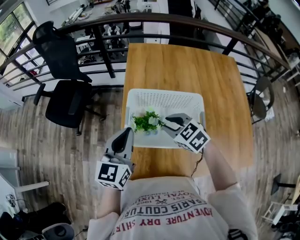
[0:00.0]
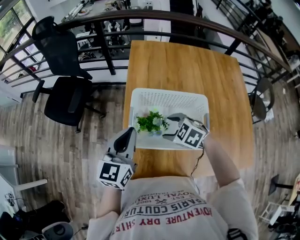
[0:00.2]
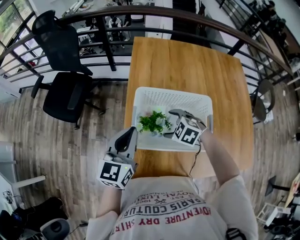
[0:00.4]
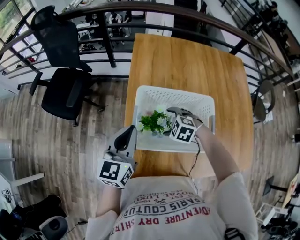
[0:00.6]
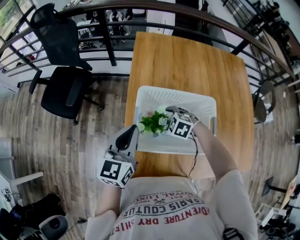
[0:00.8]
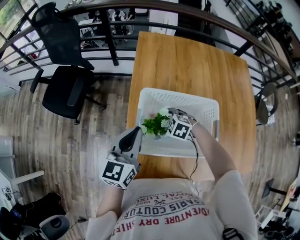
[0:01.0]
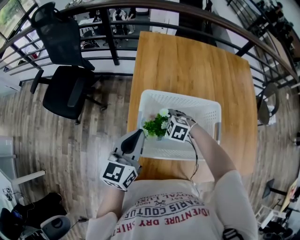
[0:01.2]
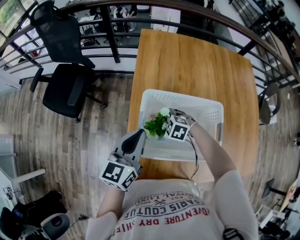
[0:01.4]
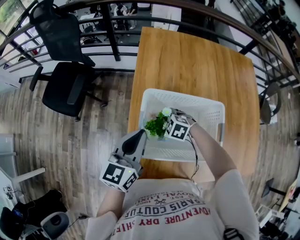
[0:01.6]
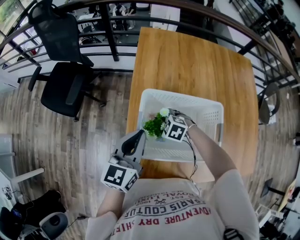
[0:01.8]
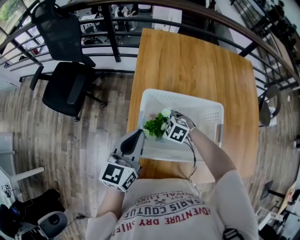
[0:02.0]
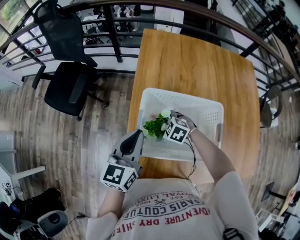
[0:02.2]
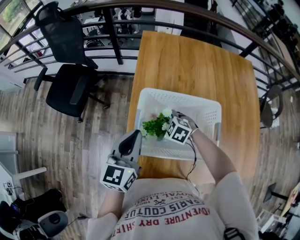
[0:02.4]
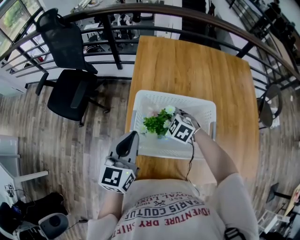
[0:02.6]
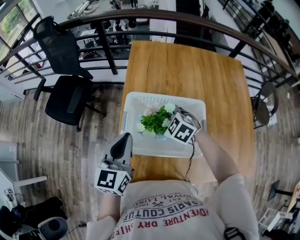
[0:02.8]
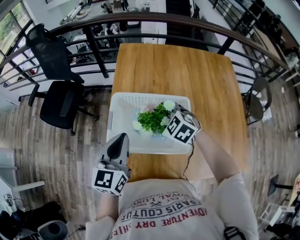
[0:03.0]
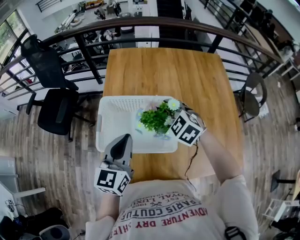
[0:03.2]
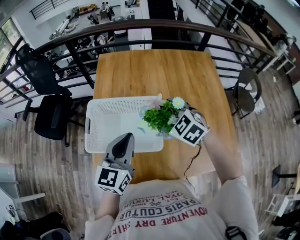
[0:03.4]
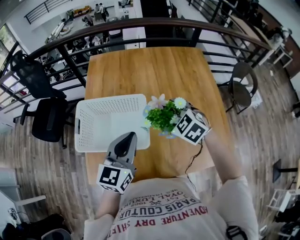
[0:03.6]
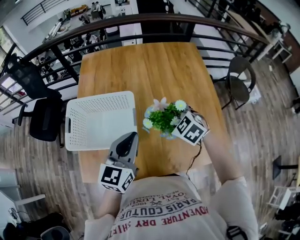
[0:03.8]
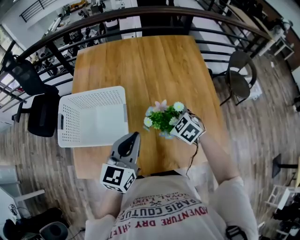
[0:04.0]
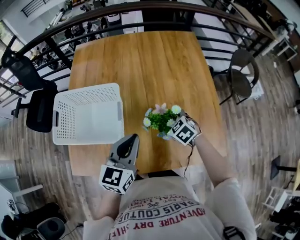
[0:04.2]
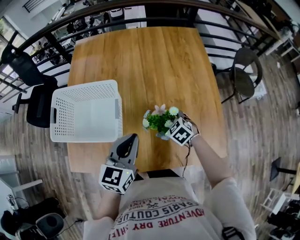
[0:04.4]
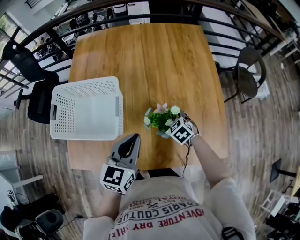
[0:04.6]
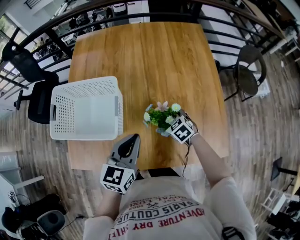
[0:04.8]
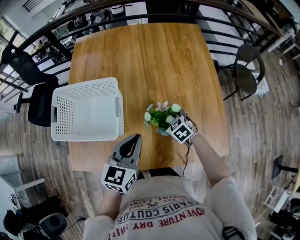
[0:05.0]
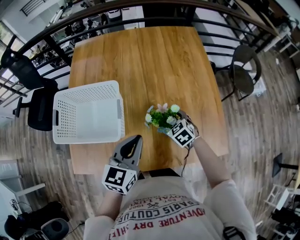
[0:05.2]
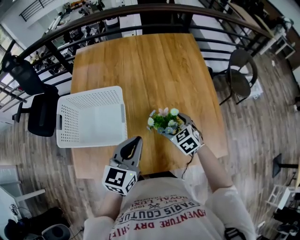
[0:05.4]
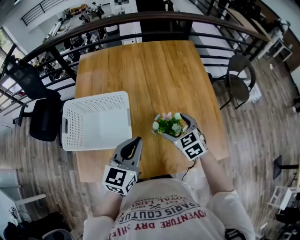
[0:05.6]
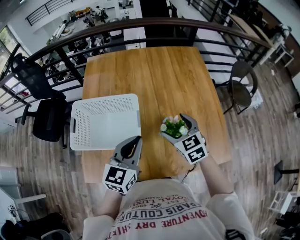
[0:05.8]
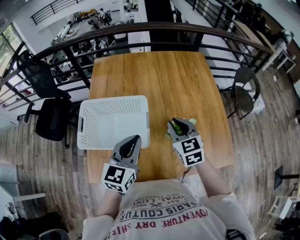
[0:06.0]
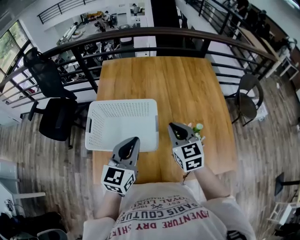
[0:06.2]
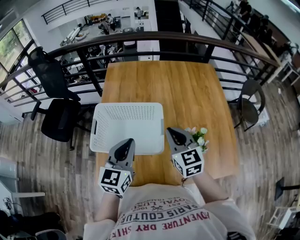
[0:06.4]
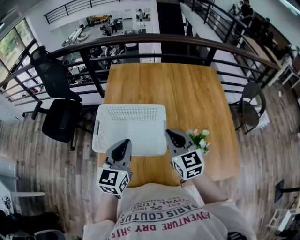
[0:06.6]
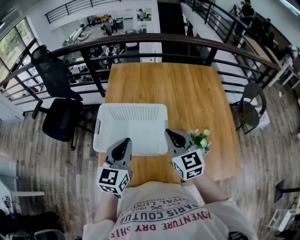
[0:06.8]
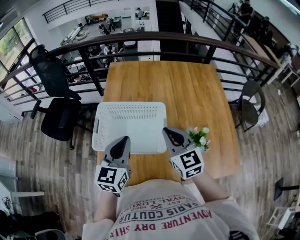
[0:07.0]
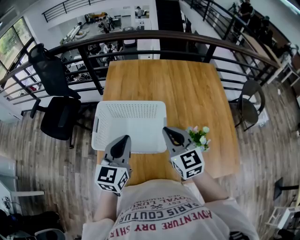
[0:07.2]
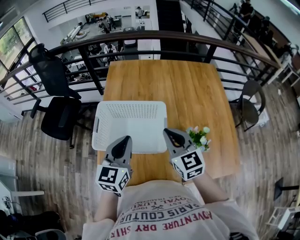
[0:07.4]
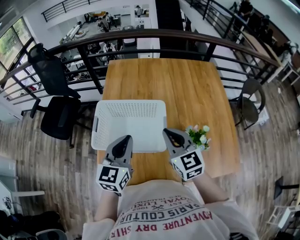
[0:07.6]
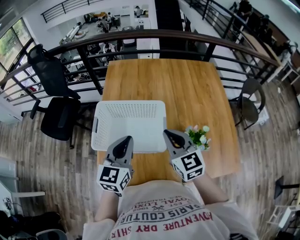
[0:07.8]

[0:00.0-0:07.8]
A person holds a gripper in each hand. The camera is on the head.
0:00.0 to 0:01.6: The left gripper shifts approximately 5 cm downward. The right gripper is displaced downward by some 20 cm, swivels about 30 degrees, and opens up.
0:01.6 to 0:03.2: The left gripper travels to the right, backward and upward by some 15 cm. Meanwhile the right gripper goes about 25 cm upward and to the right, and turns by roughly 30 degrees.
0:03.2 to 0:04.6: The right gripper goes some 35 cm to the right and downward, and rotates some 20 degrees. The left gripper moves to the right, roughly 25 cm.
0:04.6 to 0:06.2: The left gripper goes about 20 cm to the left and upward. Meanwhile the right gripper moves upward and to the left, approximately 30 cm, points its fingers roughly 40 degrees further upward, and closes up.
0:06.2 to 0:07.8: The grippers both shift to the left by approximately 5 cm.

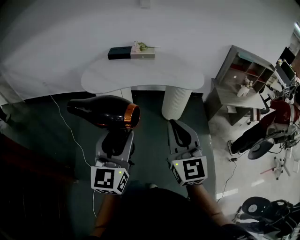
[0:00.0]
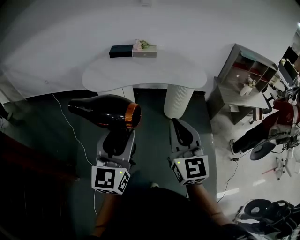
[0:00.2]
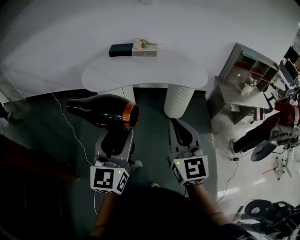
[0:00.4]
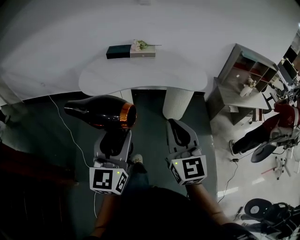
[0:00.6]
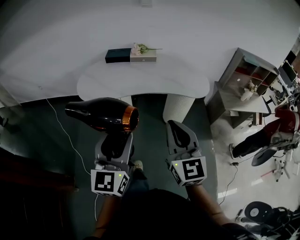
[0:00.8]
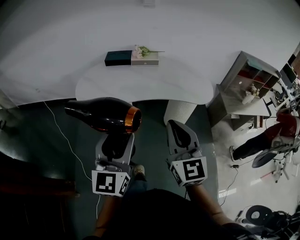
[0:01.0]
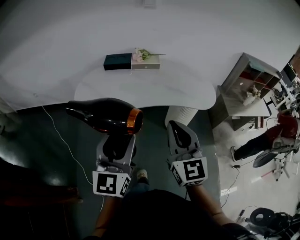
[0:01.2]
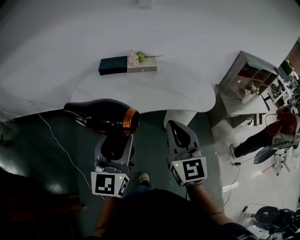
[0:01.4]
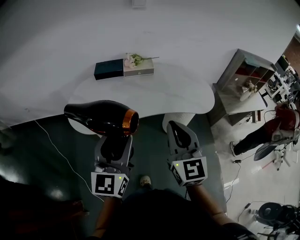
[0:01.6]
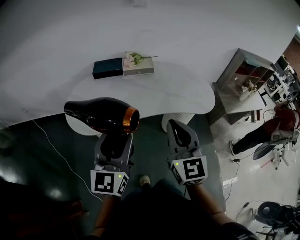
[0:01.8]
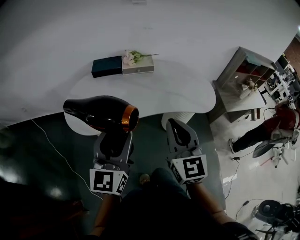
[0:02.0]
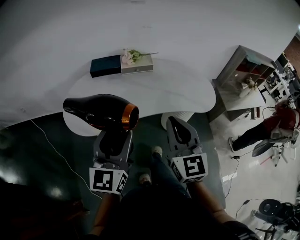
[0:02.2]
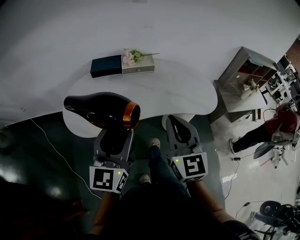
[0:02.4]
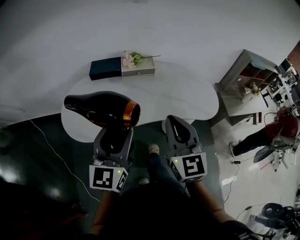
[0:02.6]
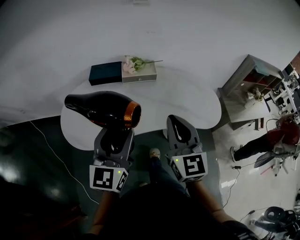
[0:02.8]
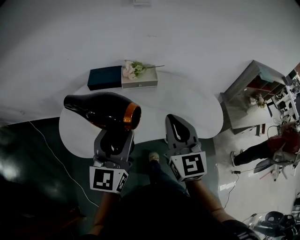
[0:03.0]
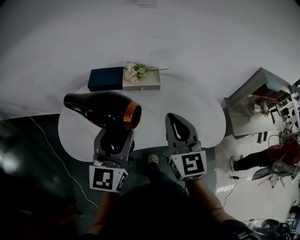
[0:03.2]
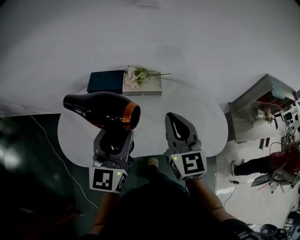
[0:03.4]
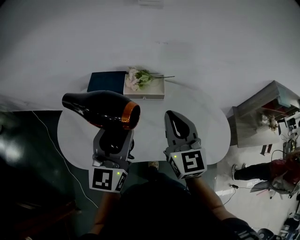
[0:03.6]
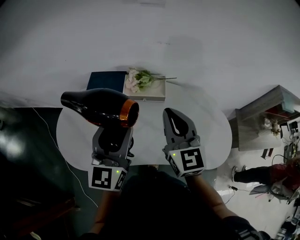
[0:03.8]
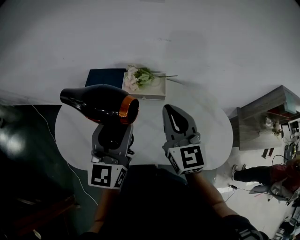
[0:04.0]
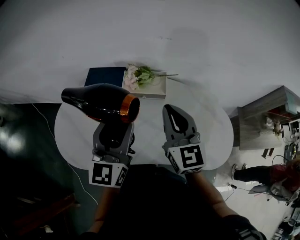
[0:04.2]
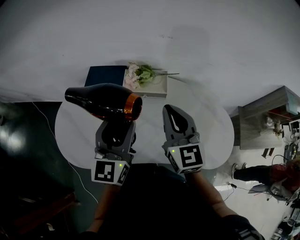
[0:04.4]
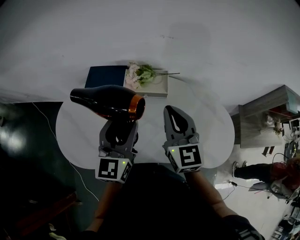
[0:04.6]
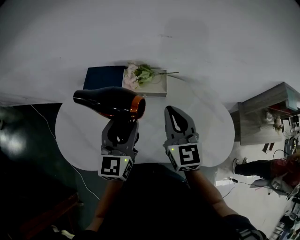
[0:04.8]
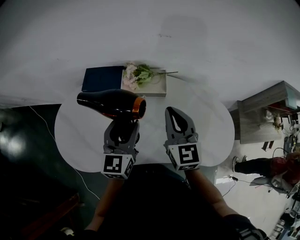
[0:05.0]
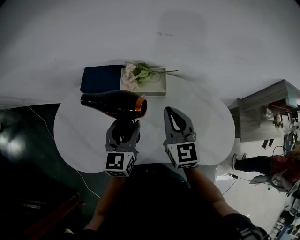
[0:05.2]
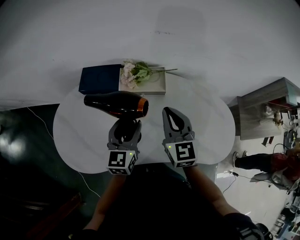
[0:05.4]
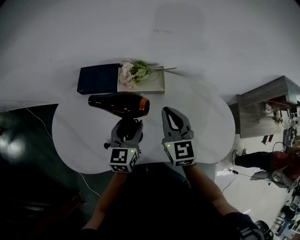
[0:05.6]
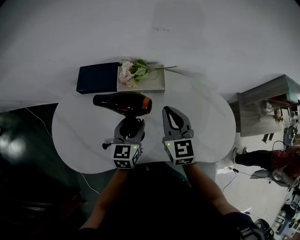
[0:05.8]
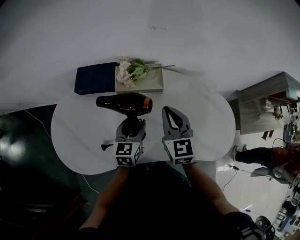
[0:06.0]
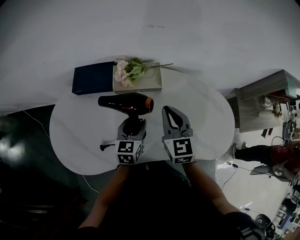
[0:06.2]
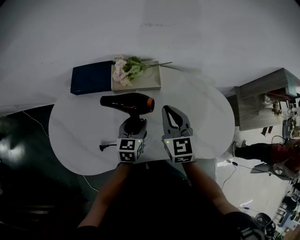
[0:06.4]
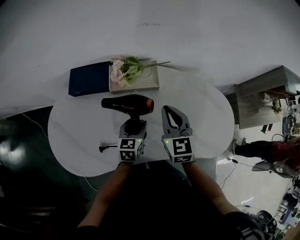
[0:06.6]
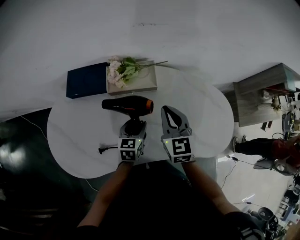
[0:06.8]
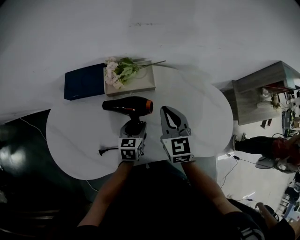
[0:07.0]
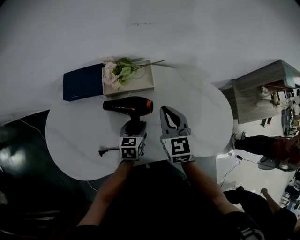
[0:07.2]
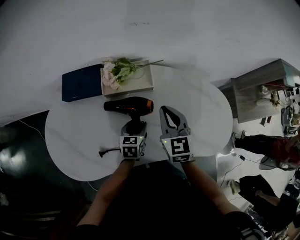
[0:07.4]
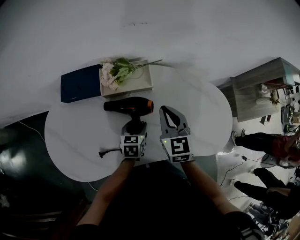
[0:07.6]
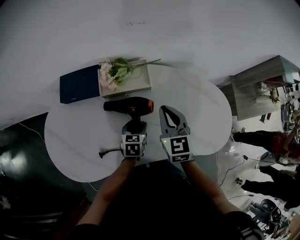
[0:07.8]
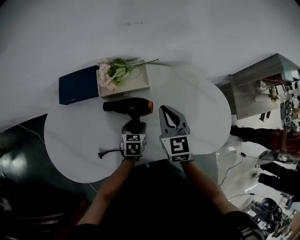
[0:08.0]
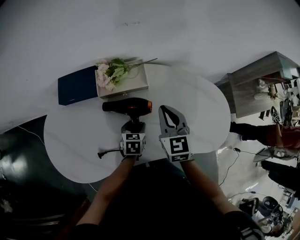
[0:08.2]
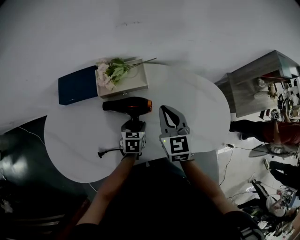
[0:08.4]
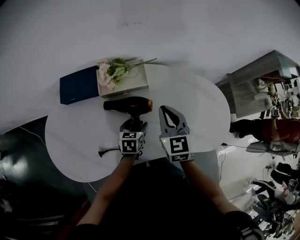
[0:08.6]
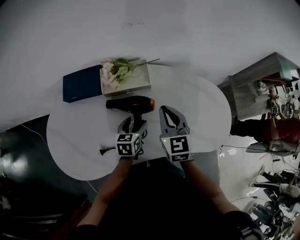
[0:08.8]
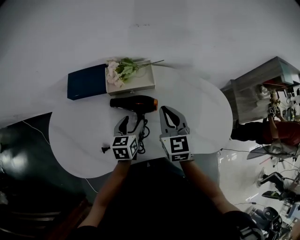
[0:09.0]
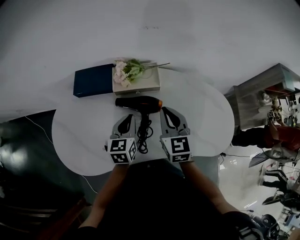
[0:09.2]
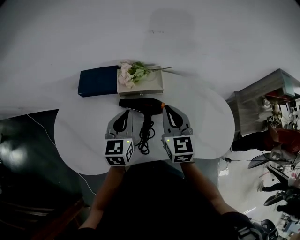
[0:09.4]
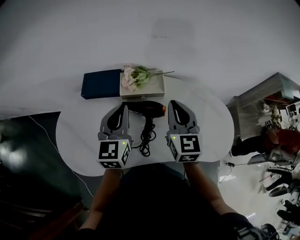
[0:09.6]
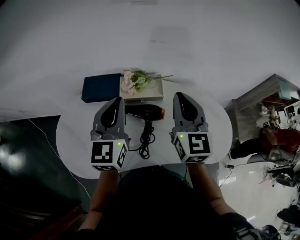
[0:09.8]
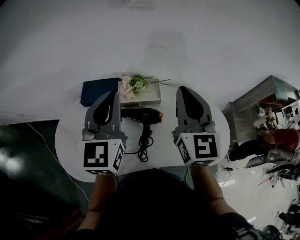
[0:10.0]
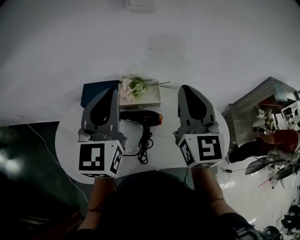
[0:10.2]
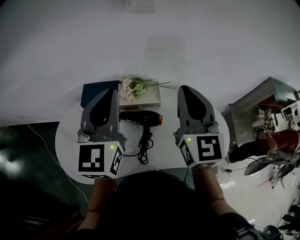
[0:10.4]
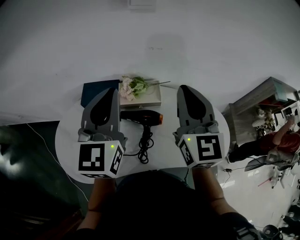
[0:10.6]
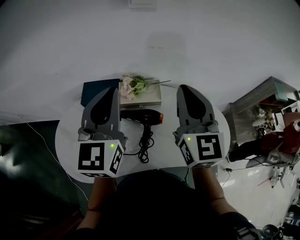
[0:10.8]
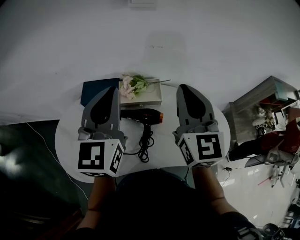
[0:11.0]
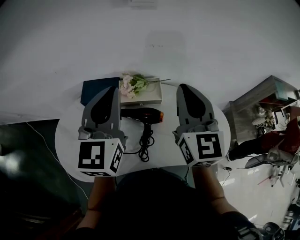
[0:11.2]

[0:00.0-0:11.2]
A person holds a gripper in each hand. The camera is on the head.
0:00.0 to 0:01.6: Both grippers travel together forward, roughly 35 cm.
0:01.6 to 0:03.2: The two grippers go roughly 25 cm forward.
0:03.2 to 0:04.8: The left gripper travels forward and downward by some 20 cm. Meanwhile the right gripper is displaced forward by about 15 cm.
0:04.8 to 0:06.4: The left gripper goes about 20 cm downward, and turns by approximately 30 degrees. The right gripper goes approximately 10 cm downward.
0:06.4 to 0:08.0: The left gripper moves downward, approximately 10 cm, and rotates roughly 20 degrees.
0:08.0 to 0:09.6: The left gripper shifts approximately 30 cm upward, points its fingers about 40 degrees further upward, and closes up. The right gripper goes some 10 cm upward.
0:09.6 to 0:11.2: The grippers both shift upward by roughly 15 cm.

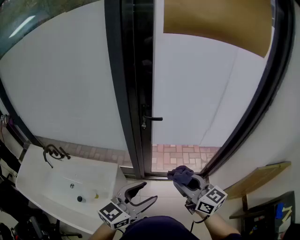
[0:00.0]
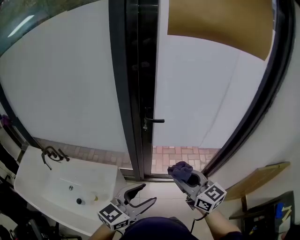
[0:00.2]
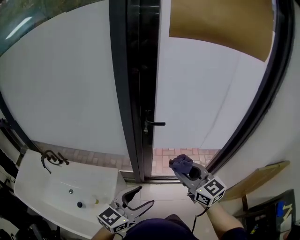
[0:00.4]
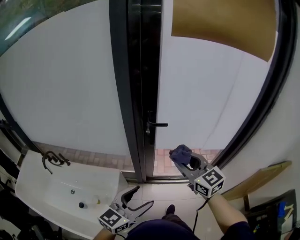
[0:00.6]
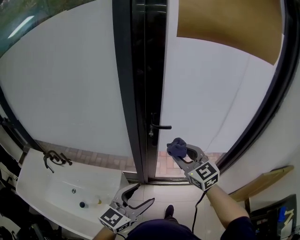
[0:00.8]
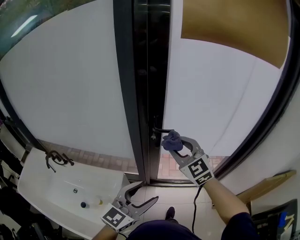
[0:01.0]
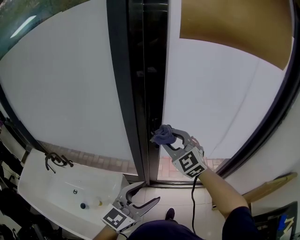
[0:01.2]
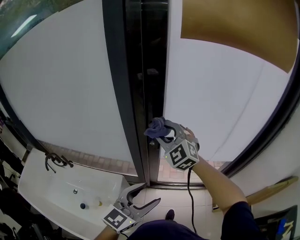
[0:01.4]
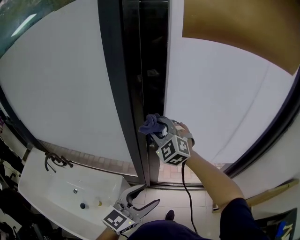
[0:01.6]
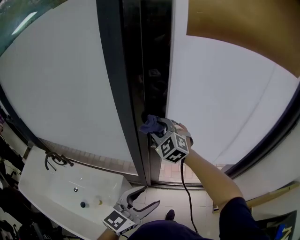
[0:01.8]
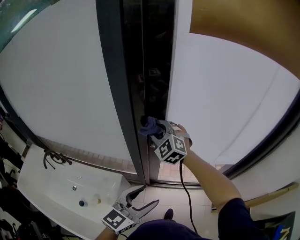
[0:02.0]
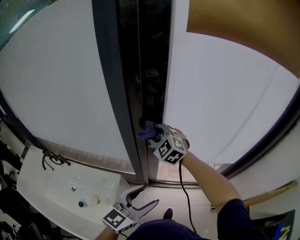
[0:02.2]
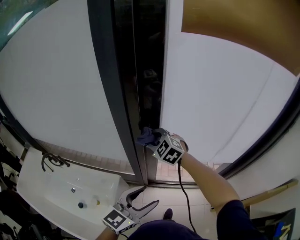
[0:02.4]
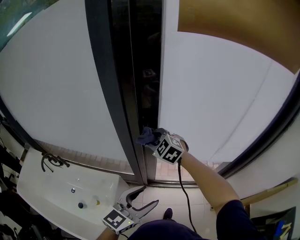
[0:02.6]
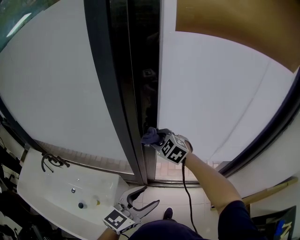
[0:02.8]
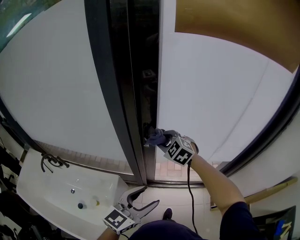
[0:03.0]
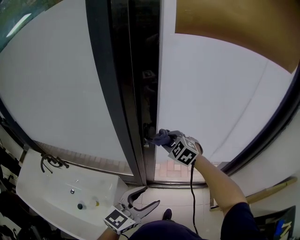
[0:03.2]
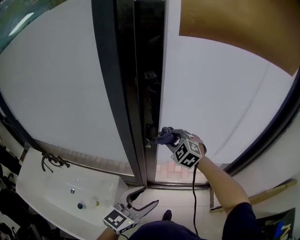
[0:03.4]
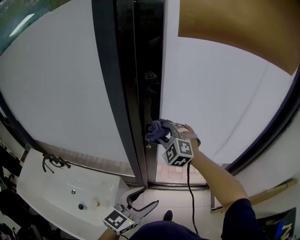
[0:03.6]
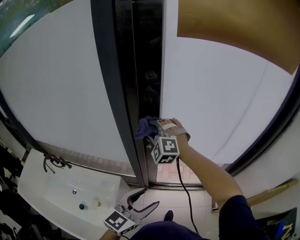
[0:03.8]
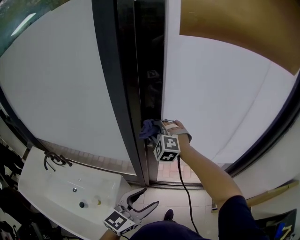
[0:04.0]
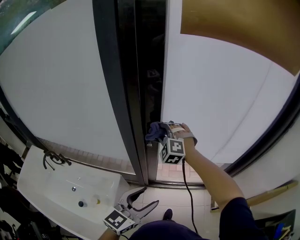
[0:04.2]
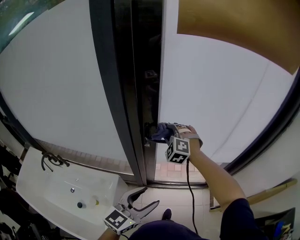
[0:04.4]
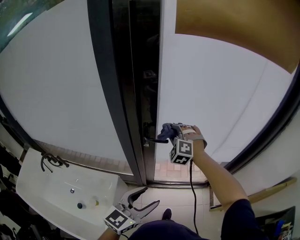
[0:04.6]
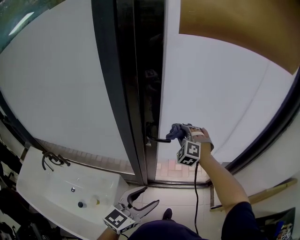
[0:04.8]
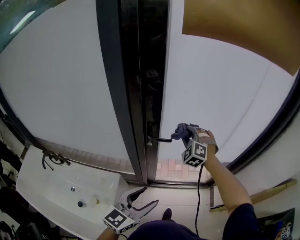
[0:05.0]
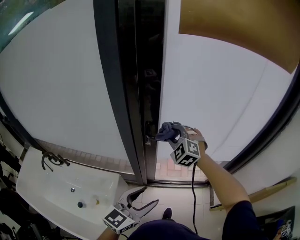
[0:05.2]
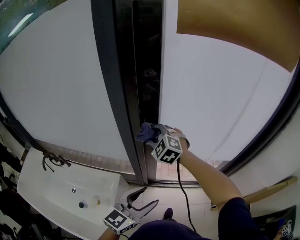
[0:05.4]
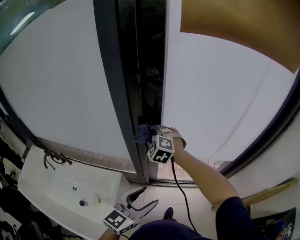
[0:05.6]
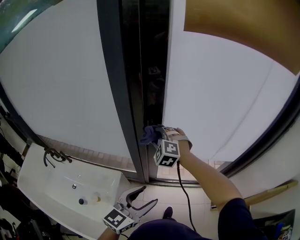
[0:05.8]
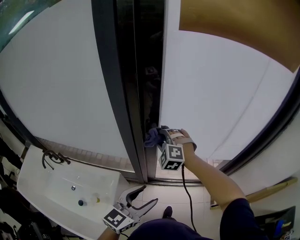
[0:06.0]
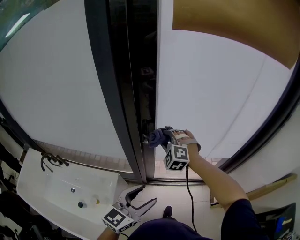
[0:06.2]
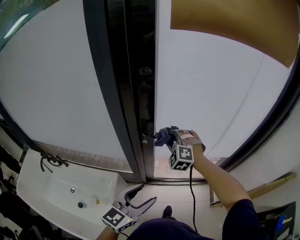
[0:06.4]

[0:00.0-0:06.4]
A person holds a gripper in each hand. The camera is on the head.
0:00.0 to 0:01.6: The right gripper shifts roughly 40 cm forward and to the left, and twists about 60 degrees counterclockwise, seen from behind, while the left gripper heads forward, covering roughly 15 cm.
0:01.6 to 0:03.2: The right gripper heads downward and to the right, covering some 15 cm, and rotates roughly 30 degrees.
0:03.2 to 0:04.8: The right gripper shifts approximately 10 cm to the right and forward, and turns by about 30 degrees.
0:04.8 to 0:06.4: The right gripper moves backward, some 5 cm, and reaches roughly 15 cm to the left, then returns.
